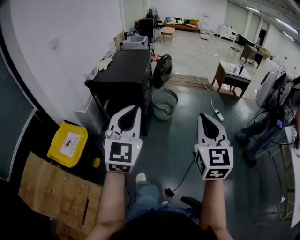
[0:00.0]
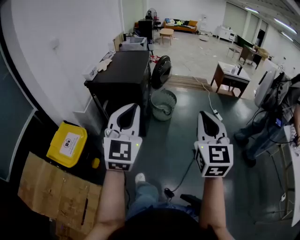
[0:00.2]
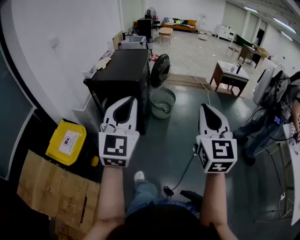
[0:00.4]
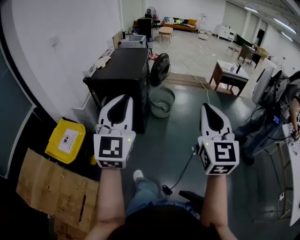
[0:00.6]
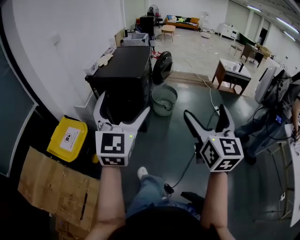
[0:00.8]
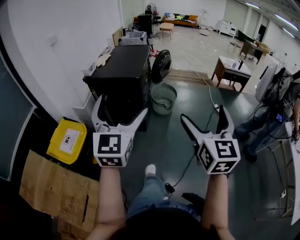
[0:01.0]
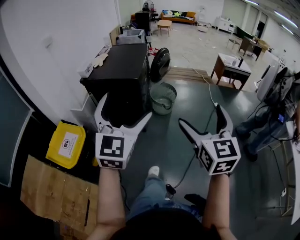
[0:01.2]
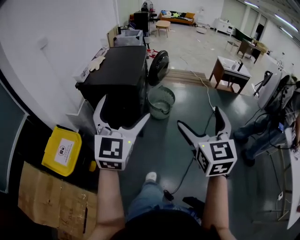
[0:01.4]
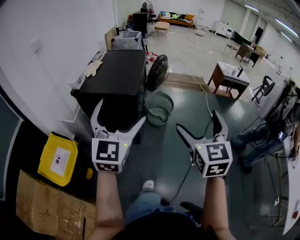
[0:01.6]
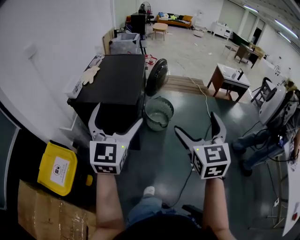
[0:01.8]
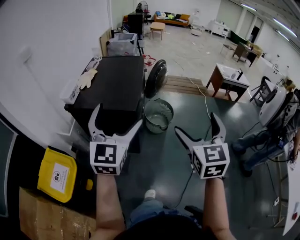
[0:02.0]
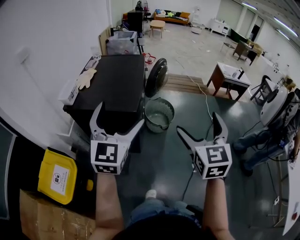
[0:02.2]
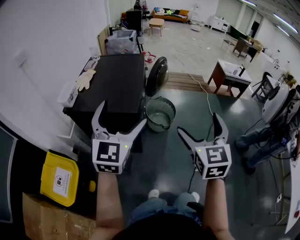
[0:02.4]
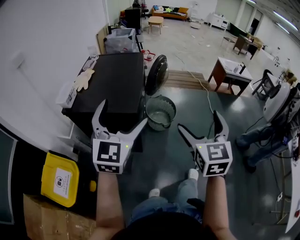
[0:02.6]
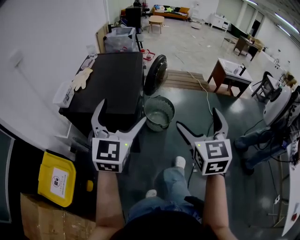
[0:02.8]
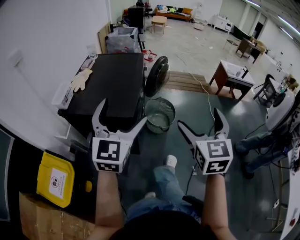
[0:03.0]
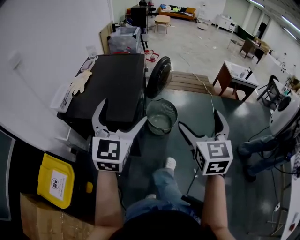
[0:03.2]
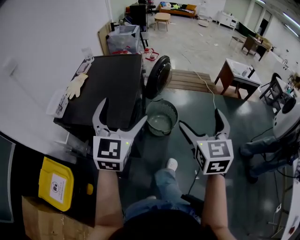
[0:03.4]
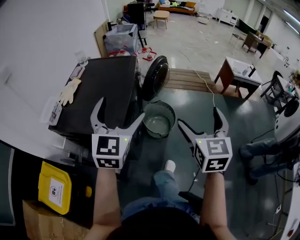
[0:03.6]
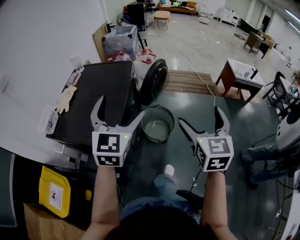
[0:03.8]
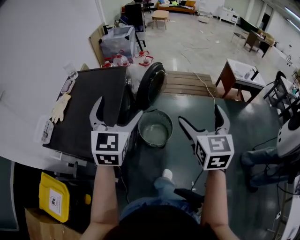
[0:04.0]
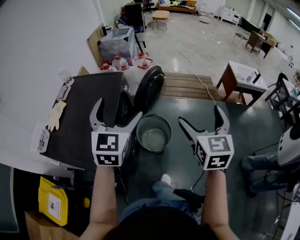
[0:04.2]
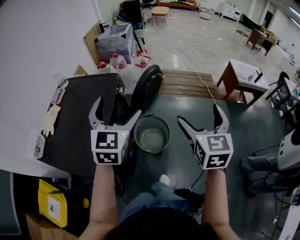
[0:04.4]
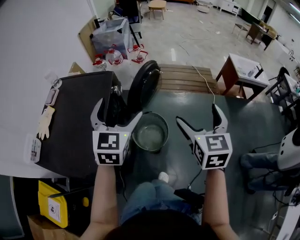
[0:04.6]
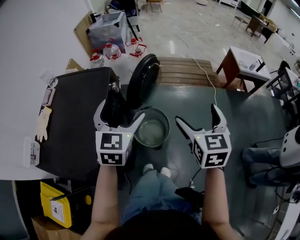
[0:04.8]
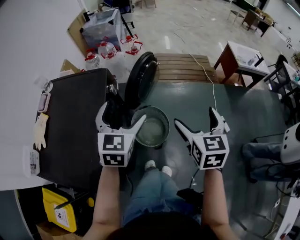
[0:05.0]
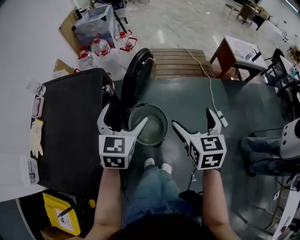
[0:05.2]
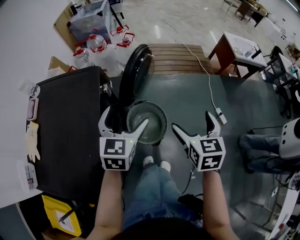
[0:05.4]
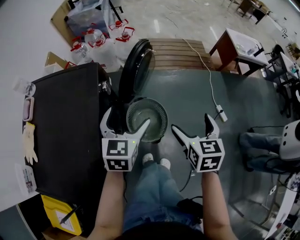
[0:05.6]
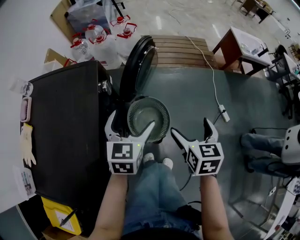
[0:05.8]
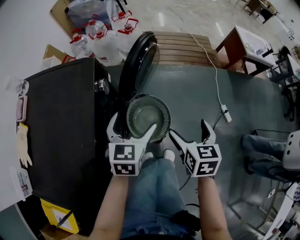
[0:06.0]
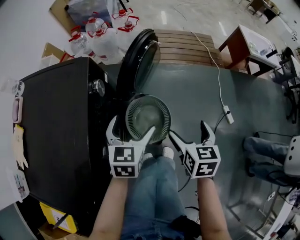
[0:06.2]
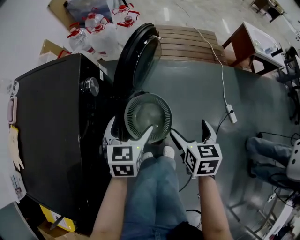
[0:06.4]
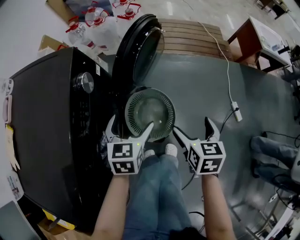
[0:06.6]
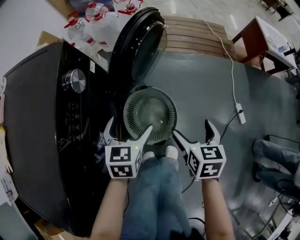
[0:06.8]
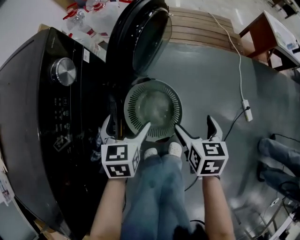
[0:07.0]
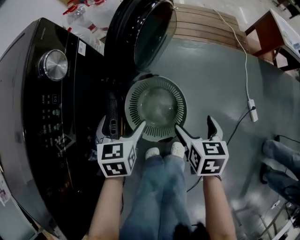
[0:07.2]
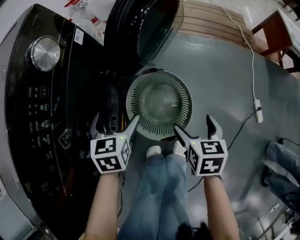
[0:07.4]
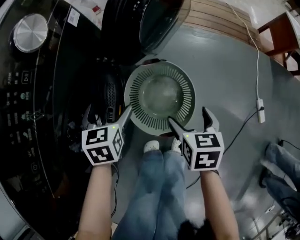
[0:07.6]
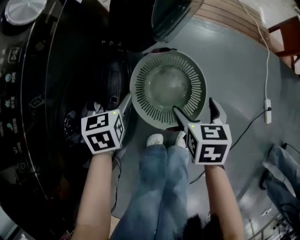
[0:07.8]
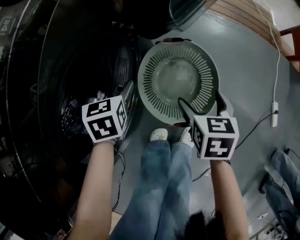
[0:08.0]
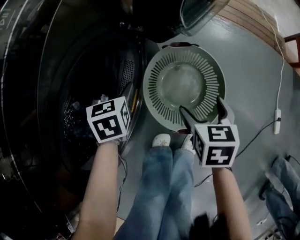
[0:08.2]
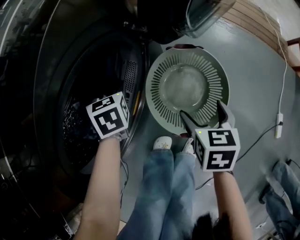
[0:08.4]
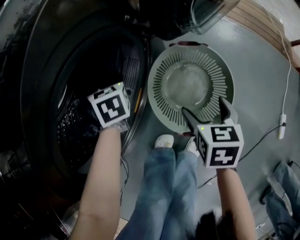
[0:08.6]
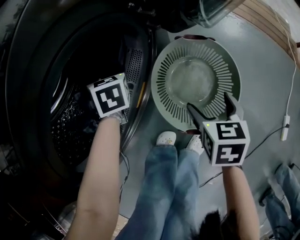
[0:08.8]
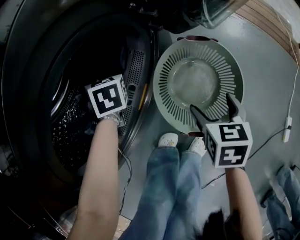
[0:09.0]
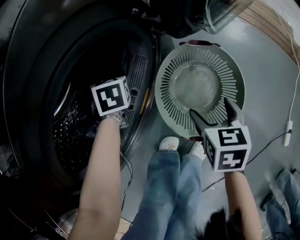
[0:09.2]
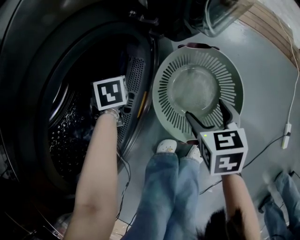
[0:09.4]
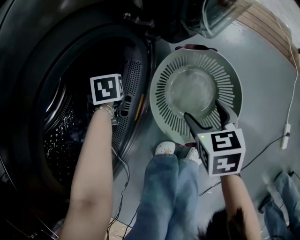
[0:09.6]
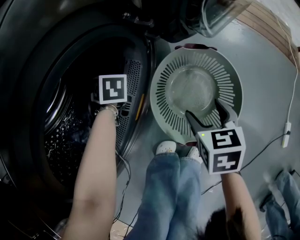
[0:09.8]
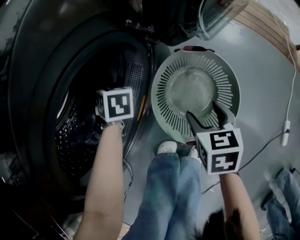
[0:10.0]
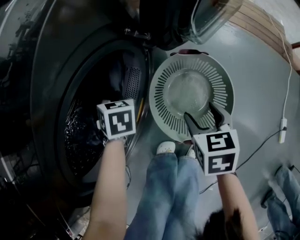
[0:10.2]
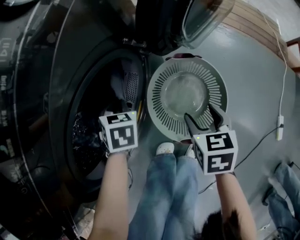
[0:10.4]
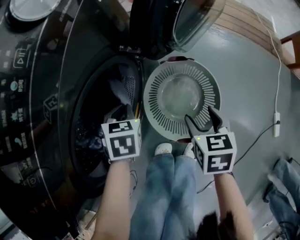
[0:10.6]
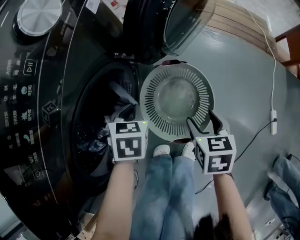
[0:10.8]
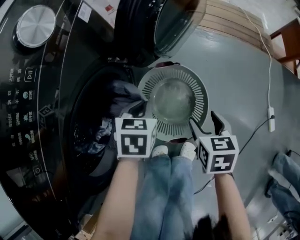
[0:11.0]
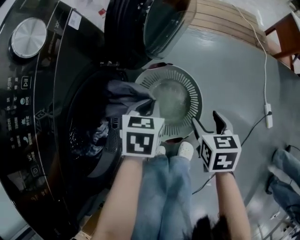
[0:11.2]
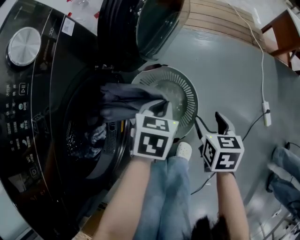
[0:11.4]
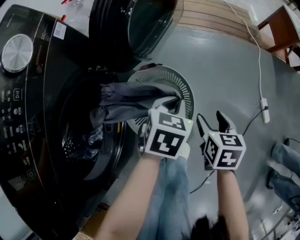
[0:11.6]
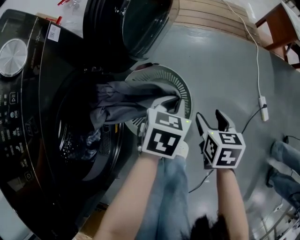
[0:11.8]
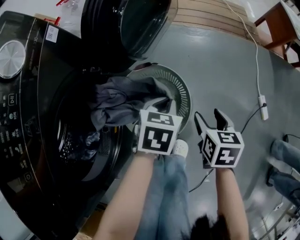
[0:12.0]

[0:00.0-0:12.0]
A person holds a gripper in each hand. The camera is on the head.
0:00.0 to 0:01.6: Both grippers travel together forward, roughly 20 cm. The right gripper opens. The left gripper opens.
0:01.6 to 0:03.0: The grippers both shift forward by roughly 20 cm.
0:03.0 to 0:04.4: The right gripper heads forward and to the right, covering some 40 cm; the left gripper travels forward by approximately 35 cm.
0:04.4 to 0:06.0: The left gripper is displaced downward and forward by roughly 25 cm, and swivels some 30 degrees. Meanwhile the right gripper travels downward by about 25 cm, and turns by approximately 30 degrees.
0:06.0 to 0:07.6: The grippers both shift downward by roughly 30 cm. The left gripper turns by roughly 30 degrees.
0:07.6 to 0:09.0: The left gripper shifts by about 20 cm, and rotates about 30 degrees, while the right gripper moves downward, approximately 10 cm.
0:09.0 to 0:10.4: The left gripper travels backward by approximately 5 cm, and closes.
0:10.4 to 0:12.0: The left gripper changes place by about 30 cm, and swivels about 40 degrees. Meanwhile the right gripper shifts by approximately 20 cm, and changes its angle by about 20 degrees.

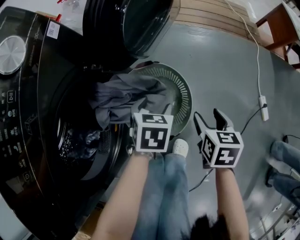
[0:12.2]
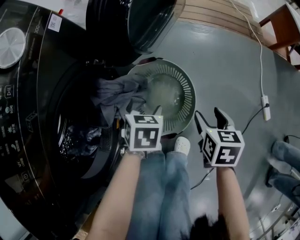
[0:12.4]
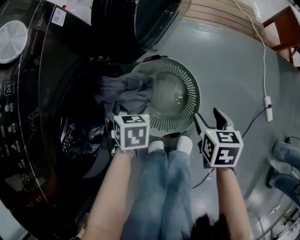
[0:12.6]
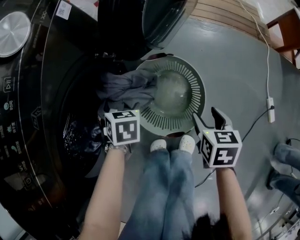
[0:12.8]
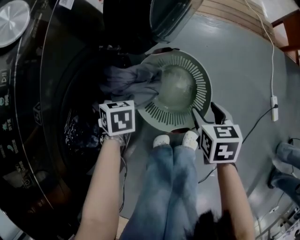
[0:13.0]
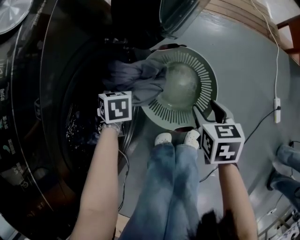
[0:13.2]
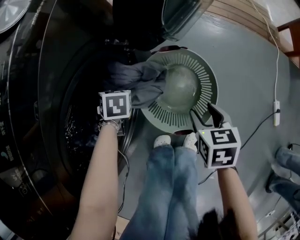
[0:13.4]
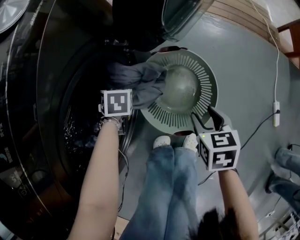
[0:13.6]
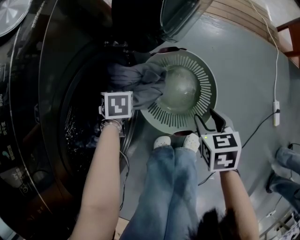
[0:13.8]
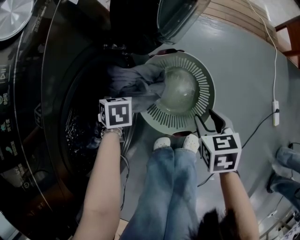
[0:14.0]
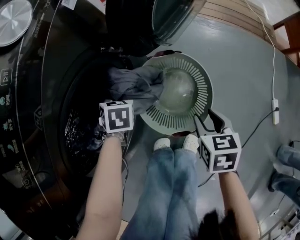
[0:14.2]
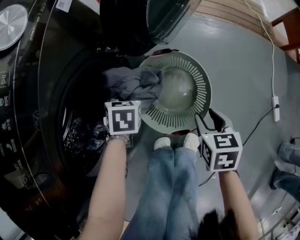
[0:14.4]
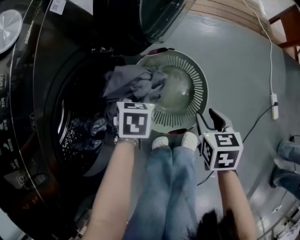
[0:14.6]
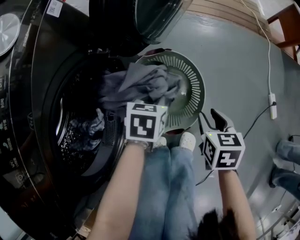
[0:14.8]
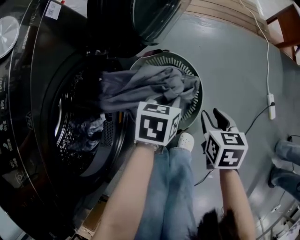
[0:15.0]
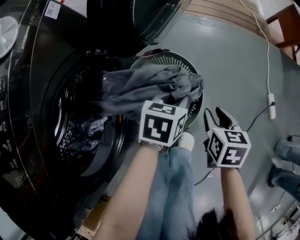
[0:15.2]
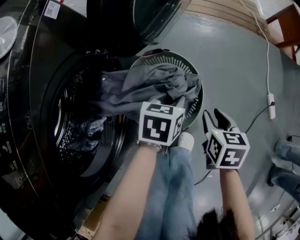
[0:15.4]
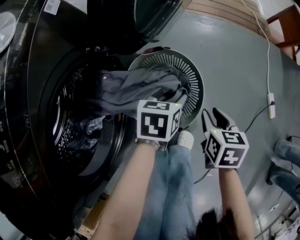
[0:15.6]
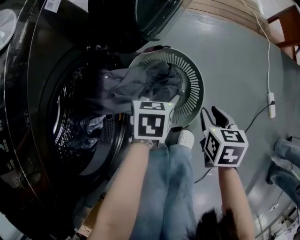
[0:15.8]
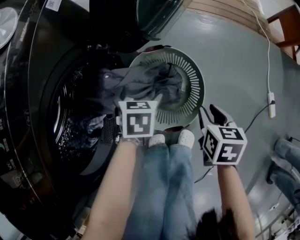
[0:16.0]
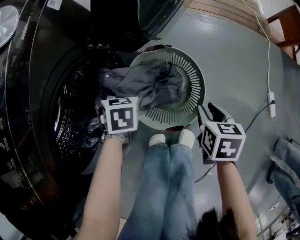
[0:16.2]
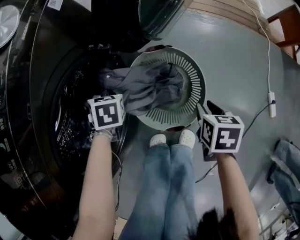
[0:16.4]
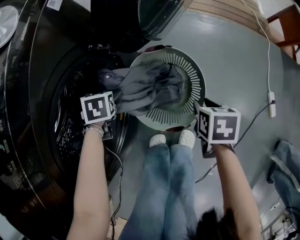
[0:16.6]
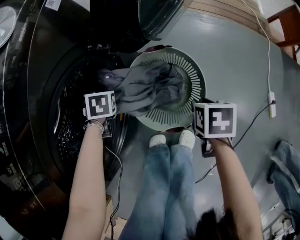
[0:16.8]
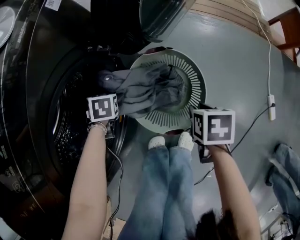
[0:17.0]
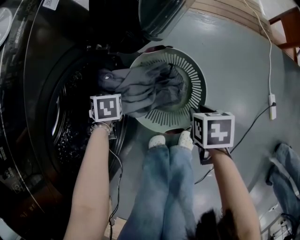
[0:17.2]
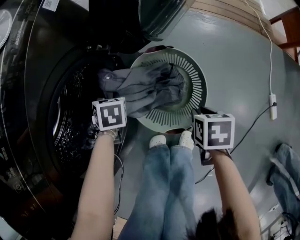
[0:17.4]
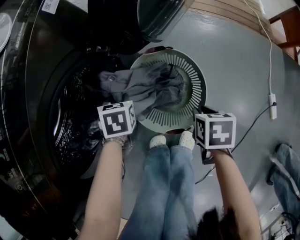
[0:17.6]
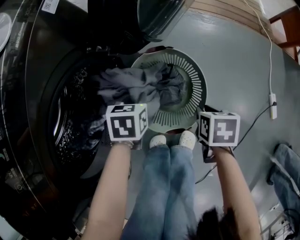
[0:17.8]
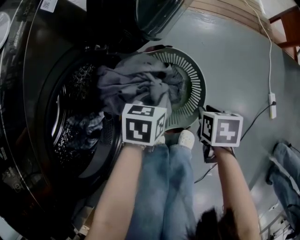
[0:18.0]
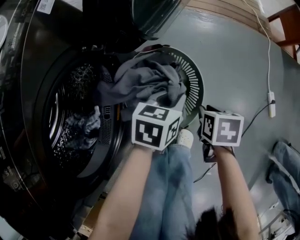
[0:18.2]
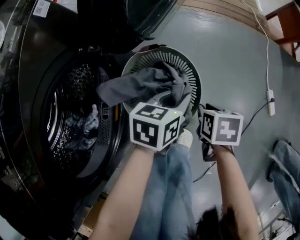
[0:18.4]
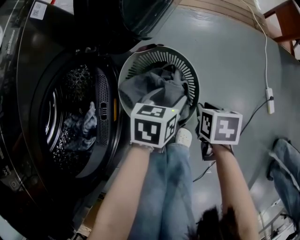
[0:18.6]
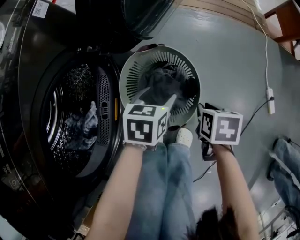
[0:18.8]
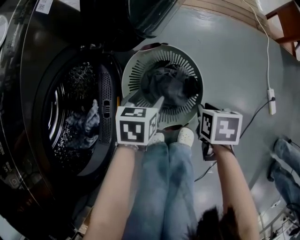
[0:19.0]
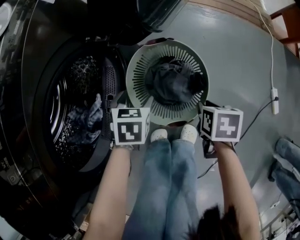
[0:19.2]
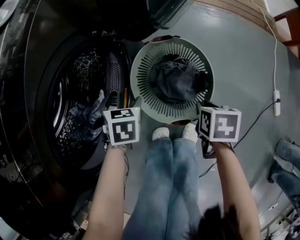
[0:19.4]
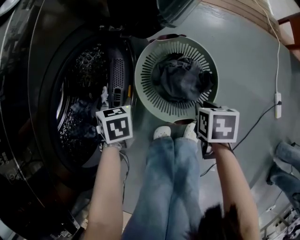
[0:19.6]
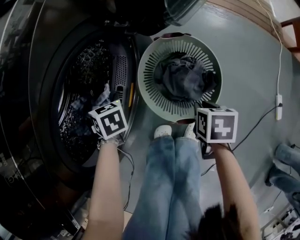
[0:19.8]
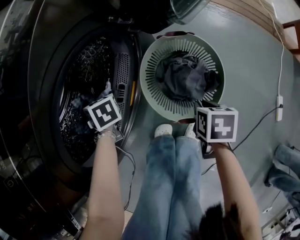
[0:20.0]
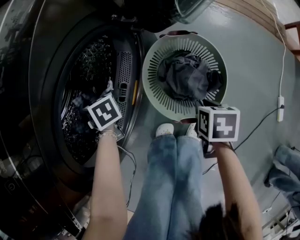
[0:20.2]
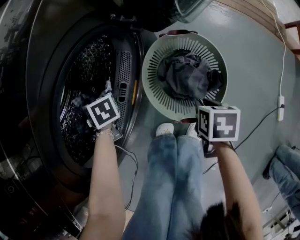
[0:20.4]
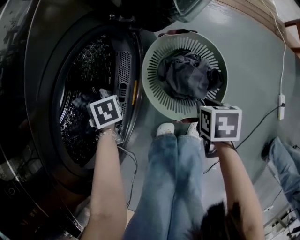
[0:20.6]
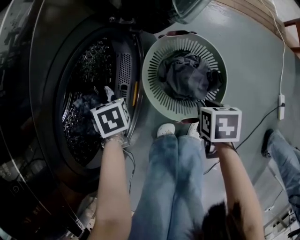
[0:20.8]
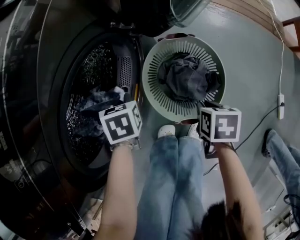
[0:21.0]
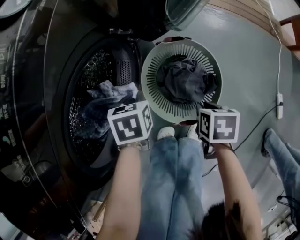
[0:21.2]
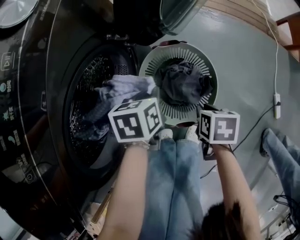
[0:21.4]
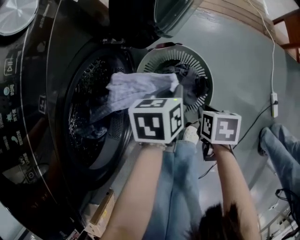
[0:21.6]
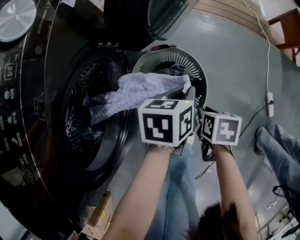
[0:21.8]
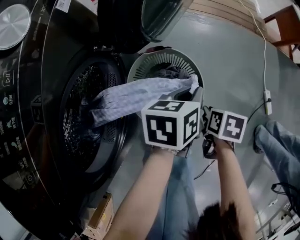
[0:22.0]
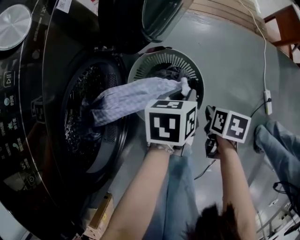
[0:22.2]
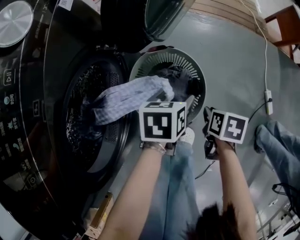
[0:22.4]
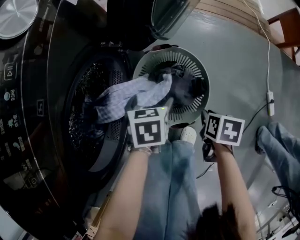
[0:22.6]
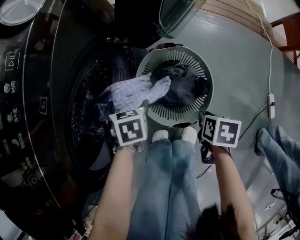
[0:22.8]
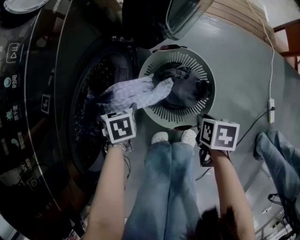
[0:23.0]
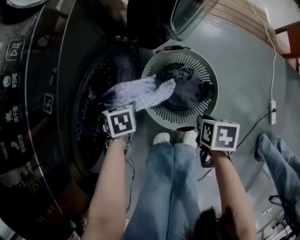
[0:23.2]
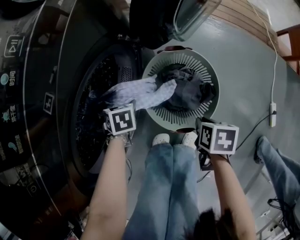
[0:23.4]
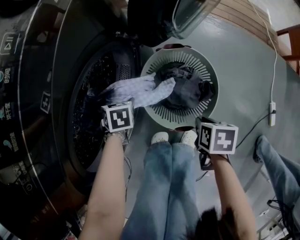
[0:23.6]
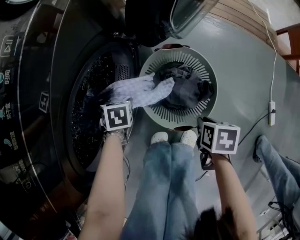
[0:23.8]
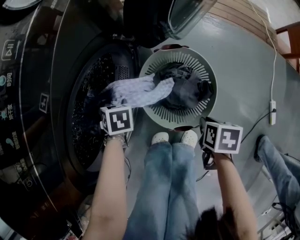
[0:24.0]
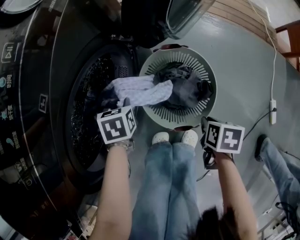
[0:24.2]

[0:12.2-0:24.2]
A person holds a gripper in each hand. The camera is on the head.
0:12.2 to 0:13.8: The left gripper shifts by approximately 25 cm, and turns by approximately 20 degrees, while the right gripper ends up some 10 cm from where it was.
0:13.8 to 0:15.2: The right gripper changes place by about 10 cm. The left gripper changes place by some 30 cm, changes its angle by approximately 40 degrees, and closes.
0:15.2 to 0:16.6: The left gripper shifts by about 30 cm, changes its angle by some 40 degrees, and opens up, while the right gripper shifts by about 5 cm.
0:16.6 to 0:18.2: The left gripper ends up about 30 cm from where it was, rotates roughly 40 degrees, and closes up.
0:18.2 to 0:19.8: The left gripper ends up roughly 35 cm from where it was, swivels approximately 60 degrees, and opens, while the right gripper ends up some 10 cm from where it was.
0:19.8 to 0:21.2: The left gripper shifts by some 15 cm, swivels roughly 30 degrees, and closes its fingers.
0:21.2 to 0:22.6: The left gripper goes upward and returns, some 10 cm each way, and opens.
0:22.6 to 0:24.2: The left gripper moves some 15 cm, and closes up.
